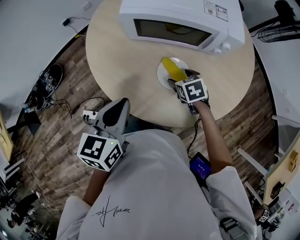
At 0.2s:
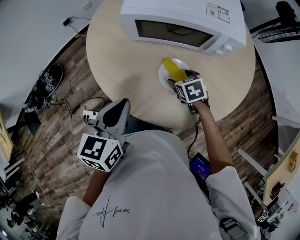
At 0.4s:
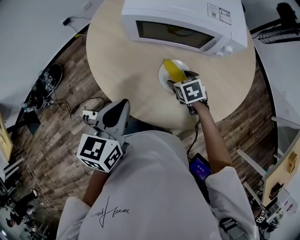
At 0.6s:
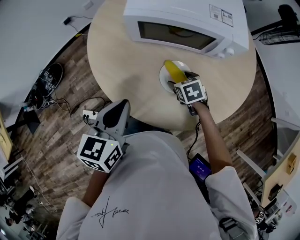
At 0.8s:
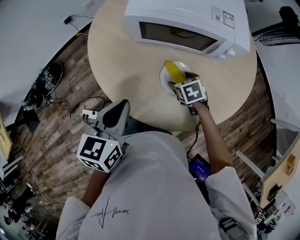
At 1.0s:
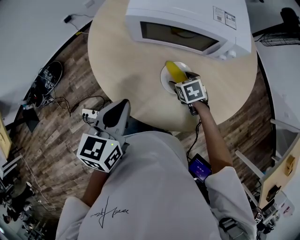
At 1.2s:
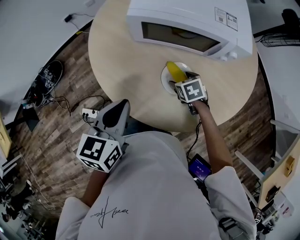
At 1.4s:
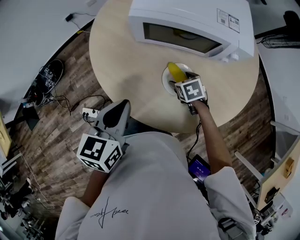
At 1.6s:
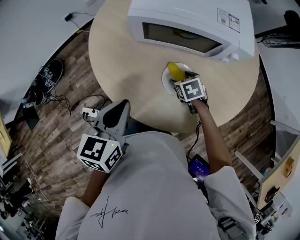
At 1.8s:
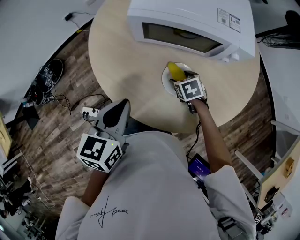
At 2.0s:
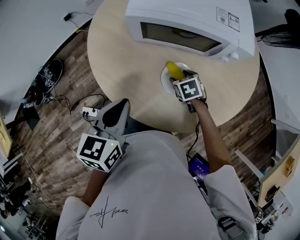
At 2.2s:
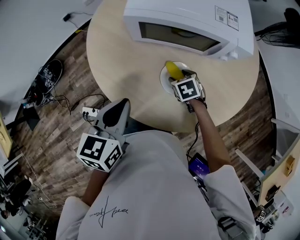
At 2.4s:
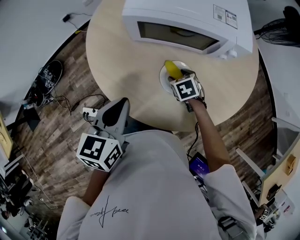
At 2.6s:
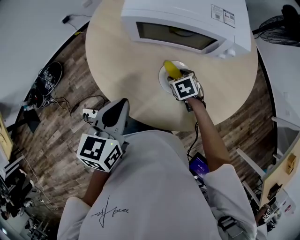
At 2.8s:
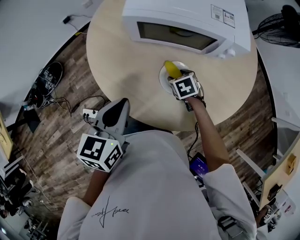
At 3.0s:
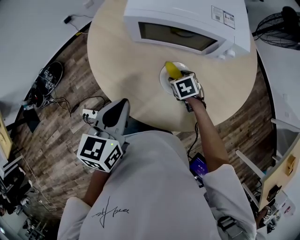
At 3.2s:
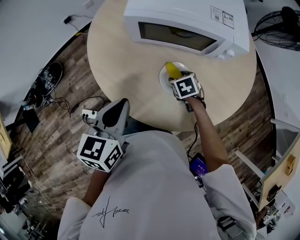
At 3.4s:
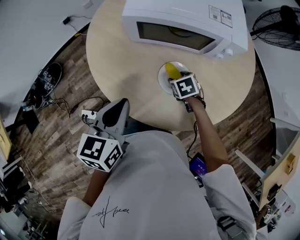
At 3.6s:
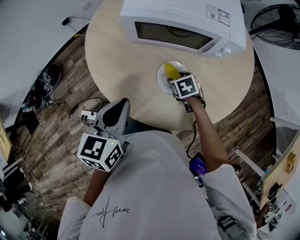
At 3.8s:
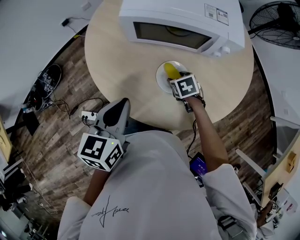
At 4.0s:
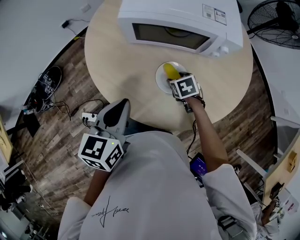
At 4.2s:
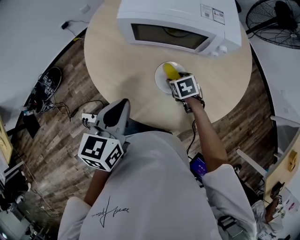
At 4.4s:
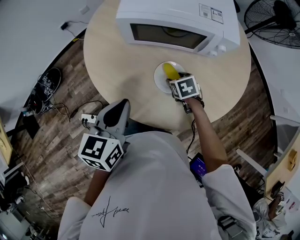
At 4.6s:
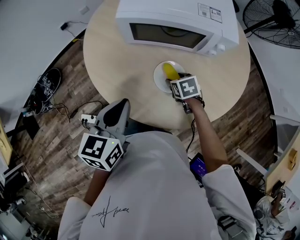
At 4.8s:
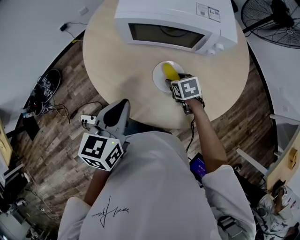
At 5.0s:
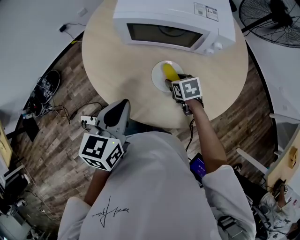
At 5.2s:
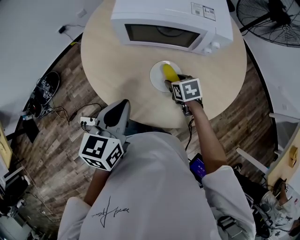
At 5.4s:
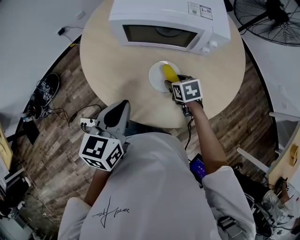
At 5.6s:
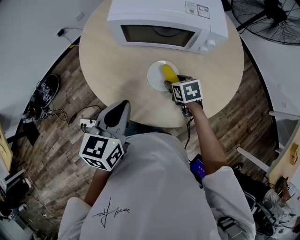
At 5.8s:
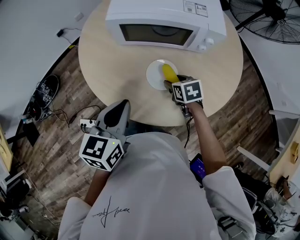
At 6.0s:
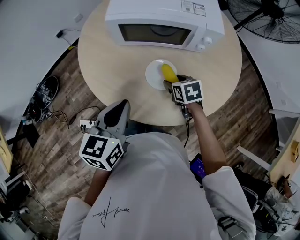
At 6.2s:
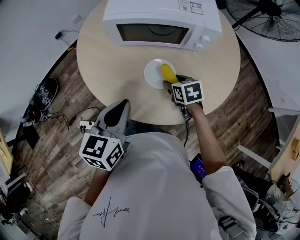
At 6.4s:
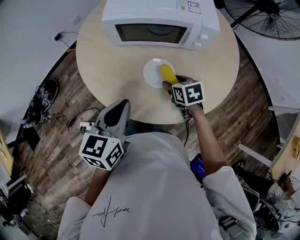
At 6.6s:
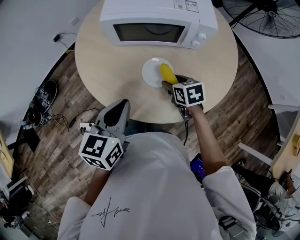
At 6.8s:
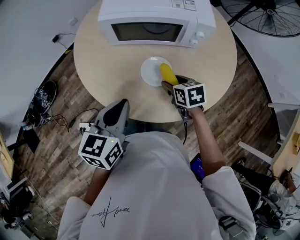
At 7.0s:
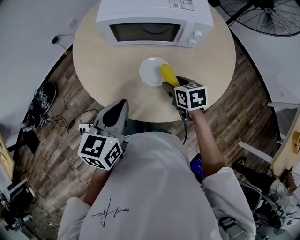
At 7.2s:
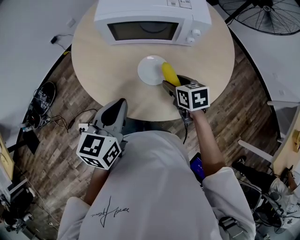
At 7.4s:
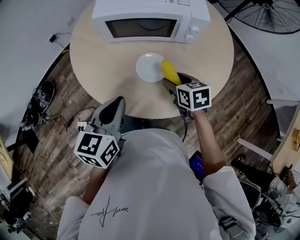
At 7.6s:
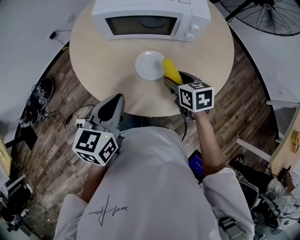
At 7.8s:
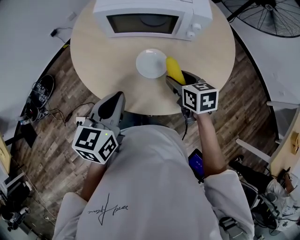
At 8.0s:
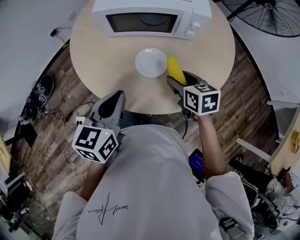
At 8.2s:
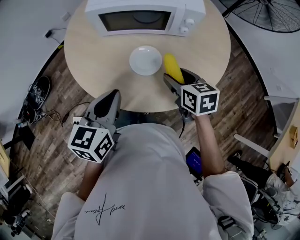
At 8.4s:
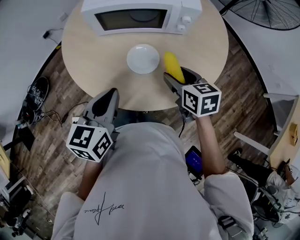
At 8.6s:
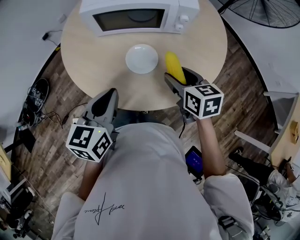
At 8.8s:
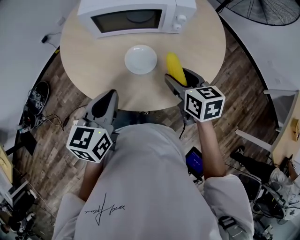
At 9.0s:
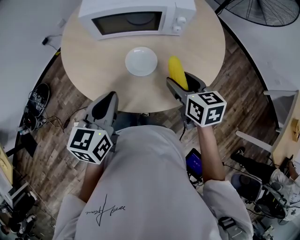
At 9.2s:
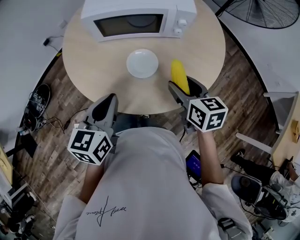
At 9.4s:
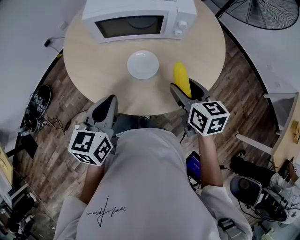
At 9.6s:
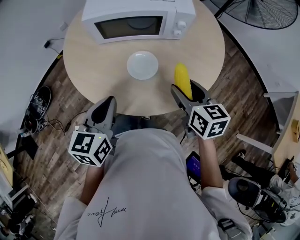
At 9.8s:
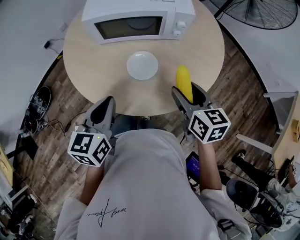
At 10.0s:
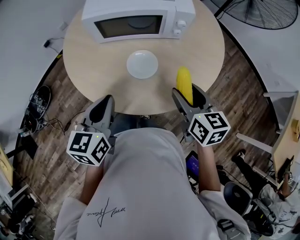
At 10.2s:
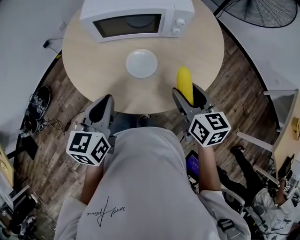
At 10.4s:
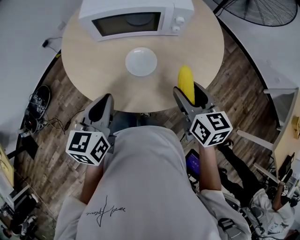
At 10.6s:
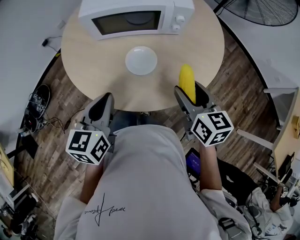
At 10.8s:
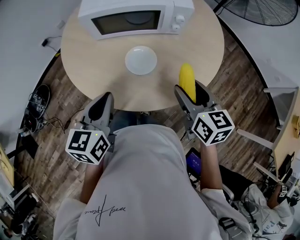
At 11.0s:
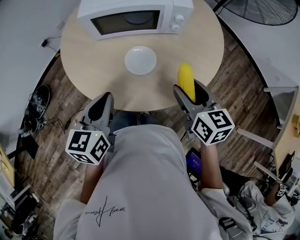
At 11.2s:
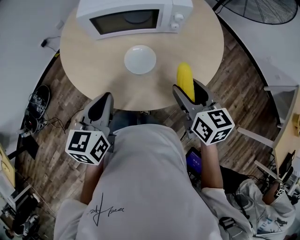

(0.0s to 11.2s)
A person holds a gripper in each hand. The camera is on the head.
0.0s - 1.6s: The grippers stay close to where they were, moving slightly.
1.6s - 3.2s: Both grippers stay put.
3.2s - 4.8s: The grippers move only a little.
4.8s - 6.4s: The right gripper ends up approximately 5 cm from where it was.
6.4s - 8.0s: The right gripper moves upward, approximately 5 cm.
8.0s - 9.6s: The right gripper heads upward, covering roughly 5 cm.
9.6s - 11.2s: The grippers make only small movements.

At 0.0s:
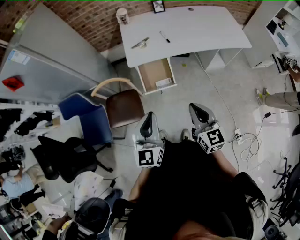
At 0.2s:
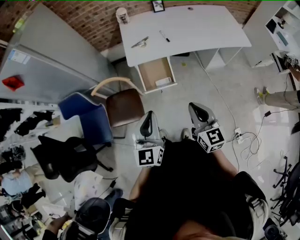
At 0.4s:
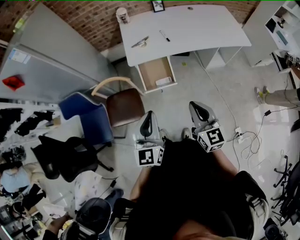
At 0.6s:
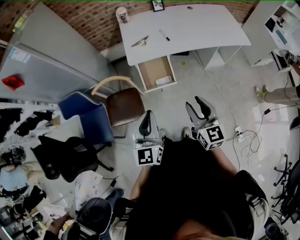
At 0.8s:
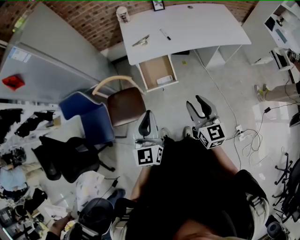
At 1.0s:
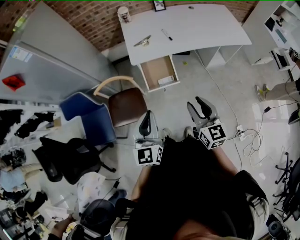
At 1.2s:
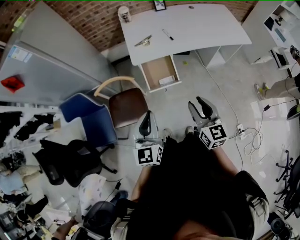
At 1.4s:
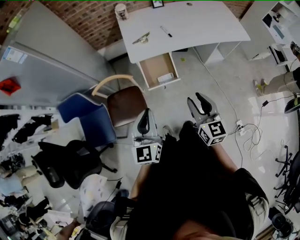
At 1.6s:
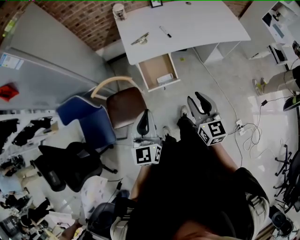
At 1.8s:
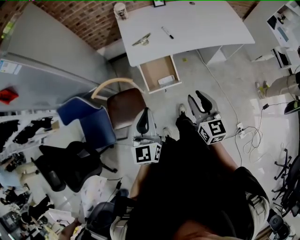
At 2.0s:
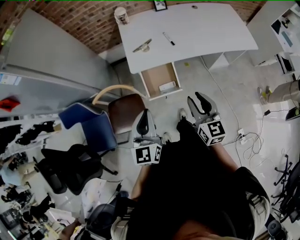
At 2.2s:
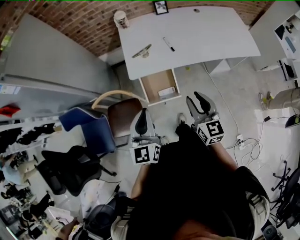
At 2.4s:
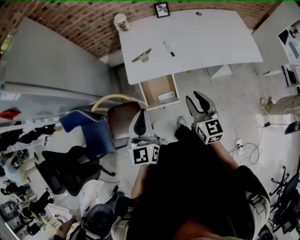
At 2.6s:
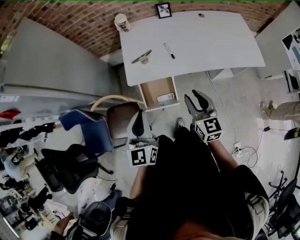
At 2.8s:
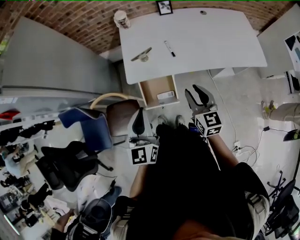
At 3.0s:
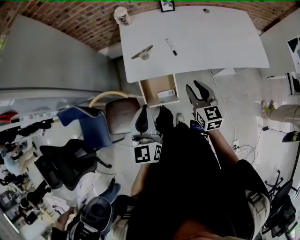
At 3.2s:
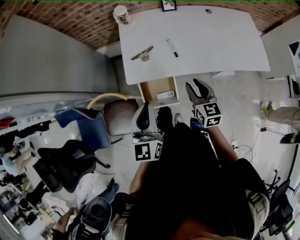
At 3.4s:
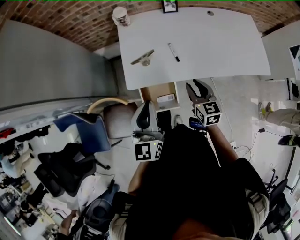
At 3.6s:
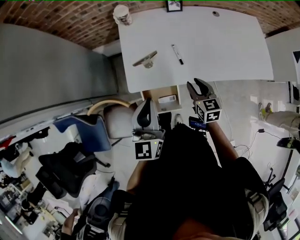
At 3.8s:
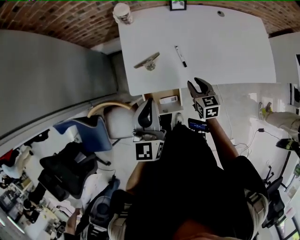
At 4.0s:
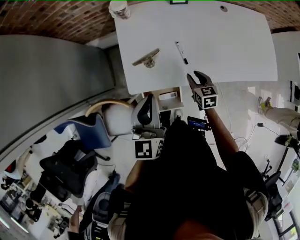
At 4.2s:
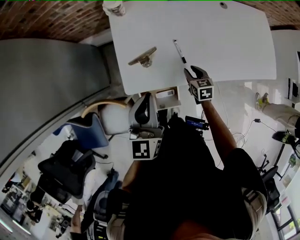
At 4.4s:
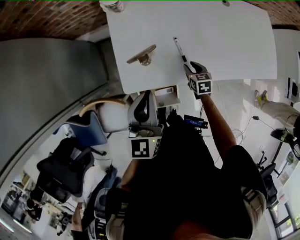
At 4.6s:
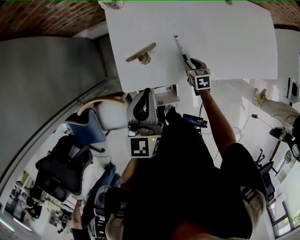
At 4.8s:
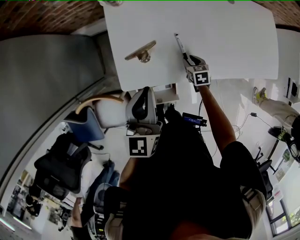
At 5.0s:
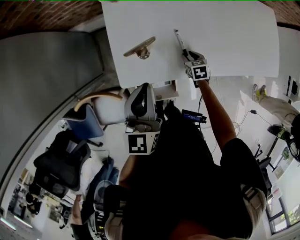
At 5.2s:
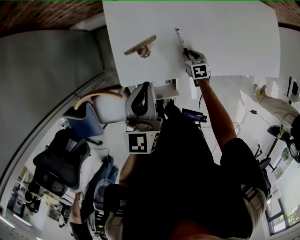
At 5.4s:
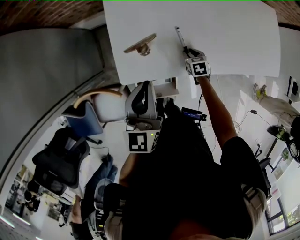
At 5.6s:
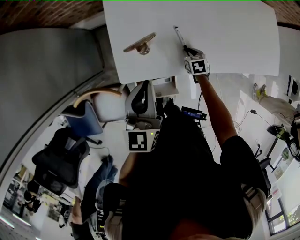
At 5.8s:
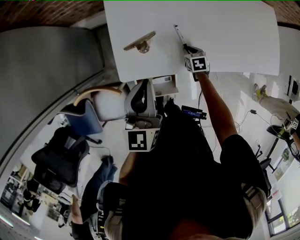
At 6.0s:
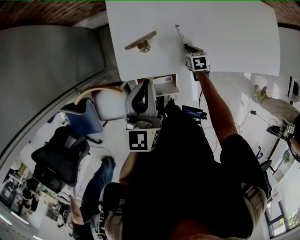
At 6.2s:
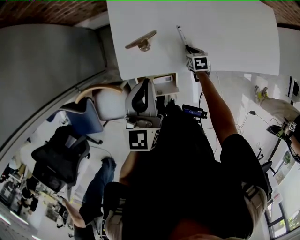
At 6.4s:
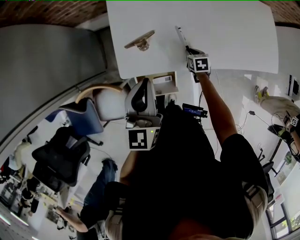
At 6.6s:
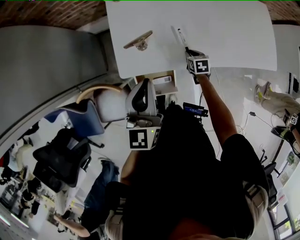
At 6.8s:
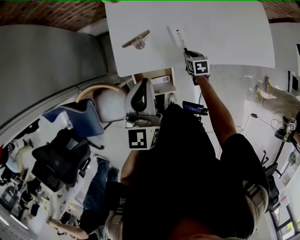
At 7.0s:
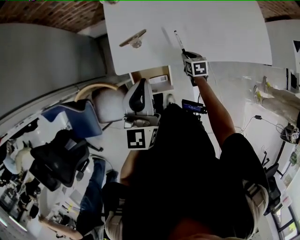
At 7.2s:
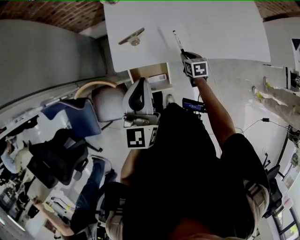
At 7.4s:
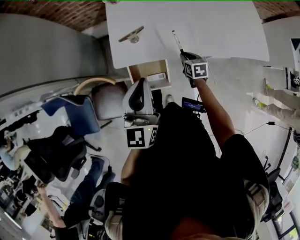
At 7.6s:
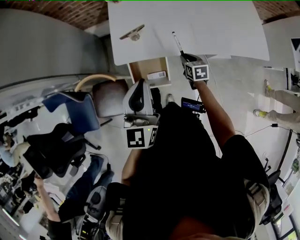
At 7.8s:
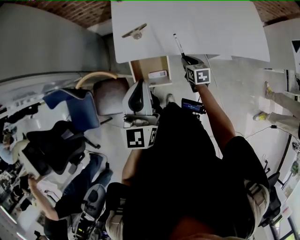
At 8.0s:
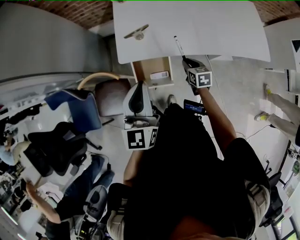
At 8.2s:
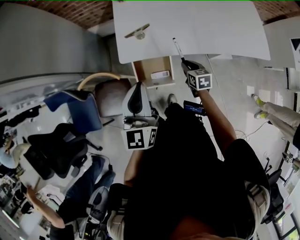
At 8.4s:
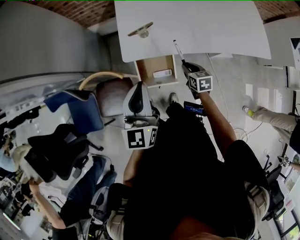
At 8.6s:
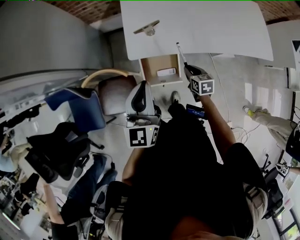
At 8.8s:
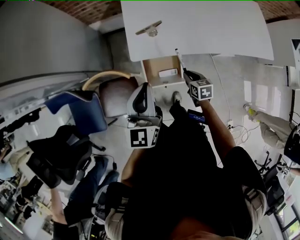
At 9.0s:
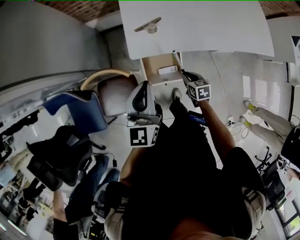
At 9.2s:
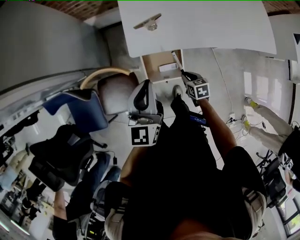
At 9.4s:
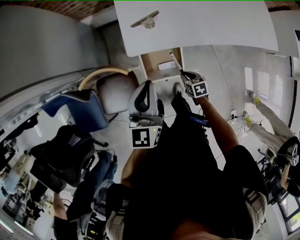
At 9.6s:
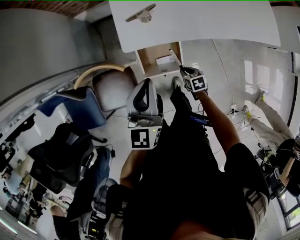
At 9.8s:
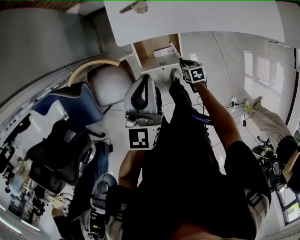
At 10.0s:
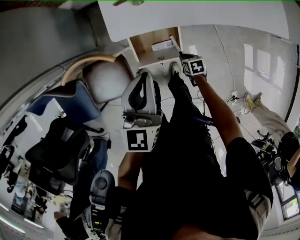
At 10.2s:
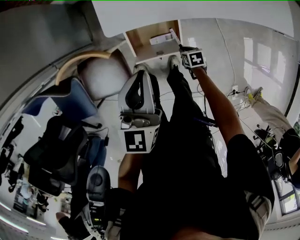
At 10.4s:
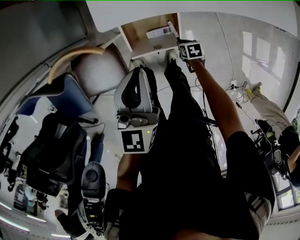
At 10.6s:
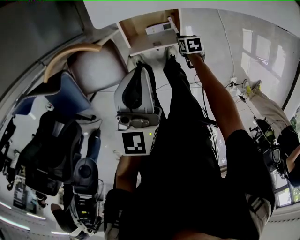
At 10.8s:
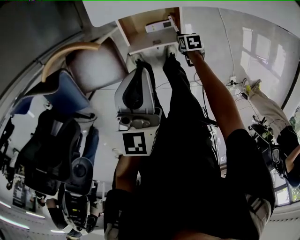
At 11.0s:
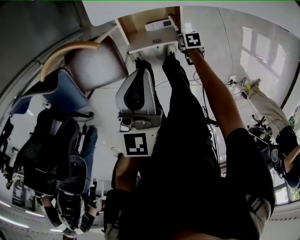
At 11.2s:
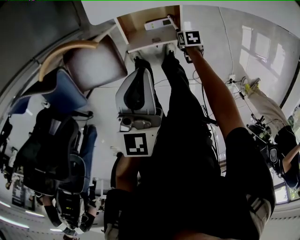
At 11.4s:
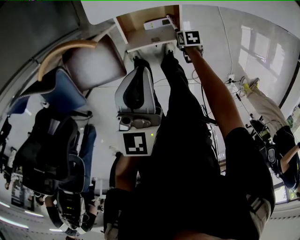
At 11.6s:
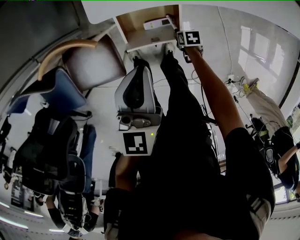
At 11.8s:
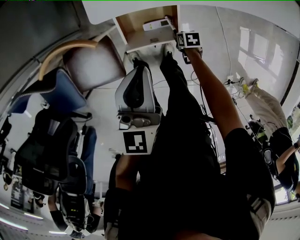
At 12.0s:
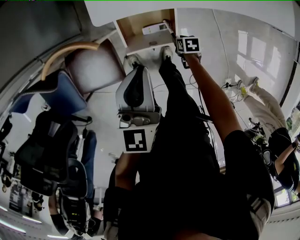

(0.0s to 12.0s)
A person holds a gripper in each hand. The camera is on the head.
0.0s - 1.6s: The right gripper ends up approximately 5 cm from where it was, and opens; the left gripper goes some 10 cm to the left.
1.6s - 3.0s: The two grippers go approximately 25 cm forward and to the right.
3.0s - 4.4s: The left gripper travels forward by about 25 cm. The right gripper goes roughly 35 cm downward and forward, and tips its fingers downward by about 30 degrees.
4.4s - 6.0s: The right gripper goes some 5 cm downward.
6.0s - 7.6s: Both grippers move backward and upward, roughly 20 cm.
7.6s - 9.0s: The left gripper heads to the left and downward, covering about 15 cm. Meanwhile the right gripper is displaced to the left and backward by approximately 15 cm.
9.0s - 10.4s: The right gripper shifts roughly 25 cm downward, and turns by about 20 degrees. The left gripper travels downward by roughly 15 cm.
10.4s - 12.0s: The grippers move only a little.

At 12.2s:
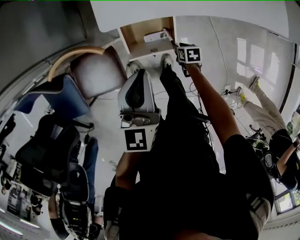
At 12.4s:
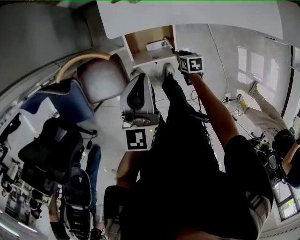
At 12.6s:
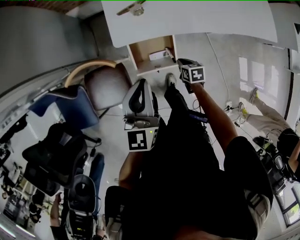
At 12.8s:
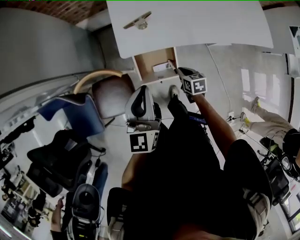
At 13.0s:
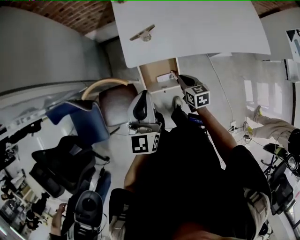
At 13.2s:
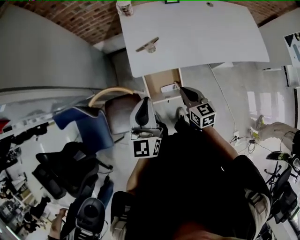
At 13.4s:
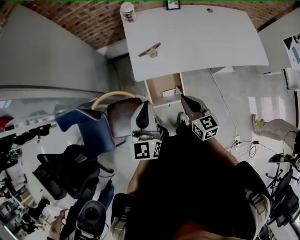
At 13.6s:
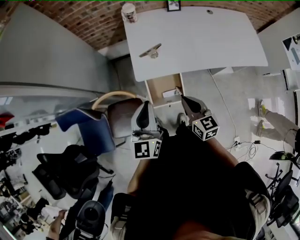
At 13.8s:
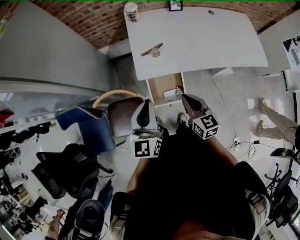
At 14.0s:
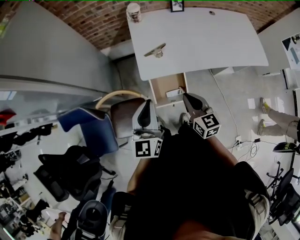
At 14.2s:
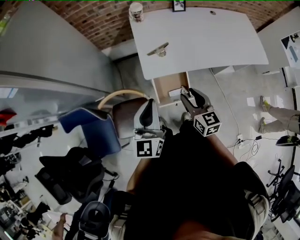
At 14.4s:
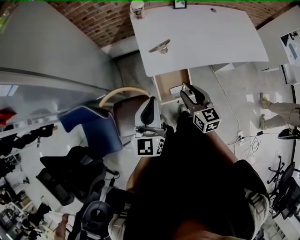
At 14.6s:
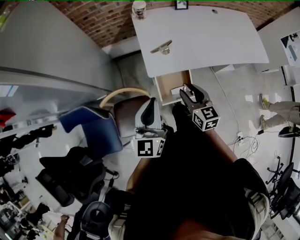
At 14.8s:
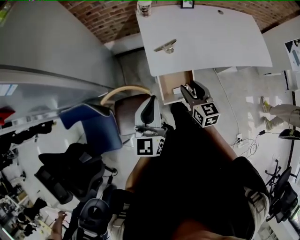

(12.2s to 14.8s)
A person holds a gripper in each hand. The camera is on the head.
12.2s - 13.4s: The right gripper heads upward, covering roughly 40 cm, angles its fingers upward, by about 50 degrees, and closes its fingers; the left gripper is displaced upward by some 15 cm.
13.4s - 14.8s: The left gripper shifts approximately 10 cm to the left. The right gripper travels to the left and forward by some 10 cm, and opens its fingers.
